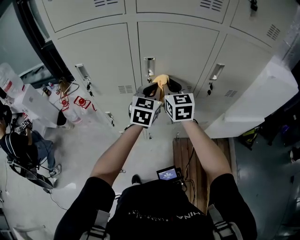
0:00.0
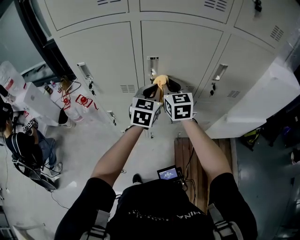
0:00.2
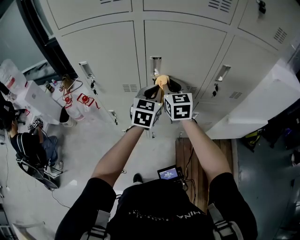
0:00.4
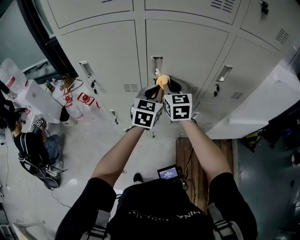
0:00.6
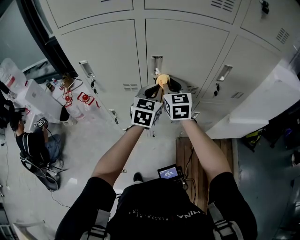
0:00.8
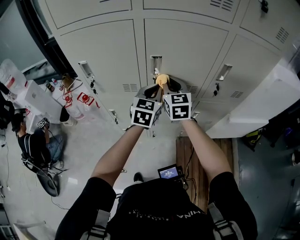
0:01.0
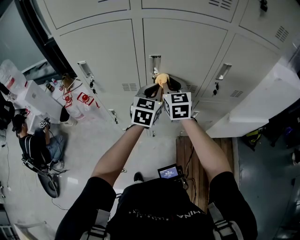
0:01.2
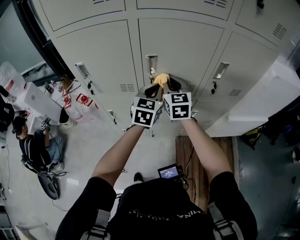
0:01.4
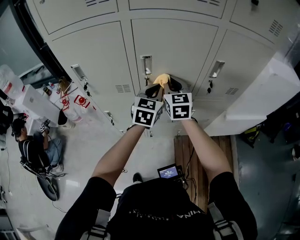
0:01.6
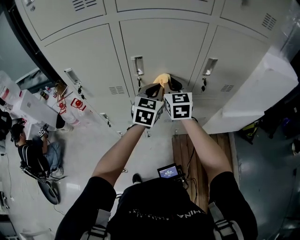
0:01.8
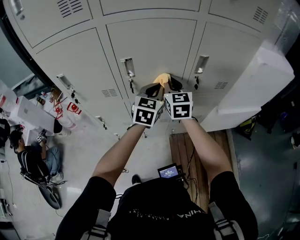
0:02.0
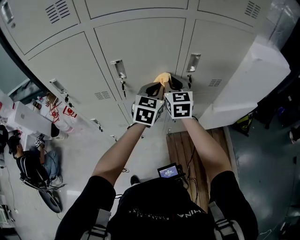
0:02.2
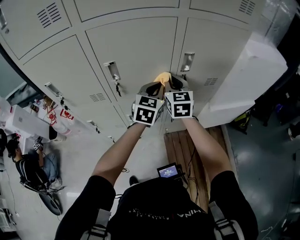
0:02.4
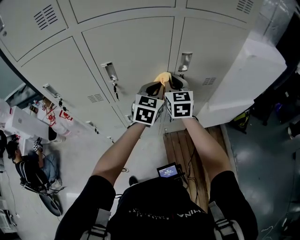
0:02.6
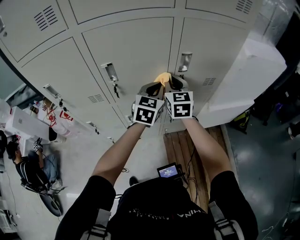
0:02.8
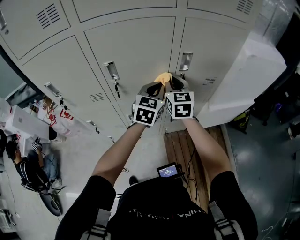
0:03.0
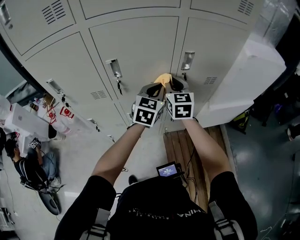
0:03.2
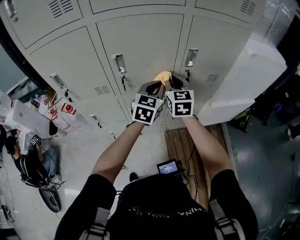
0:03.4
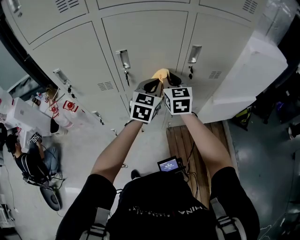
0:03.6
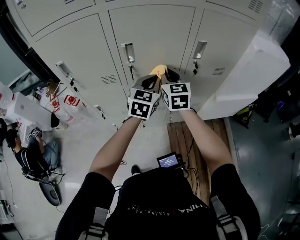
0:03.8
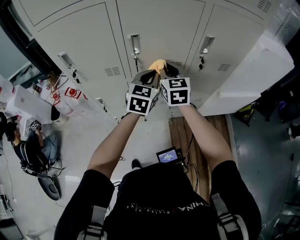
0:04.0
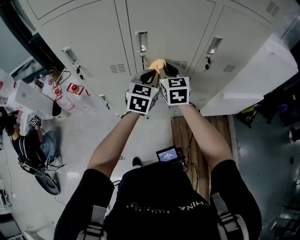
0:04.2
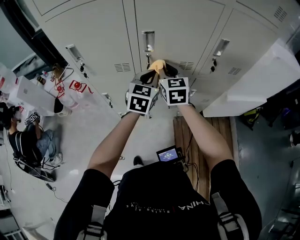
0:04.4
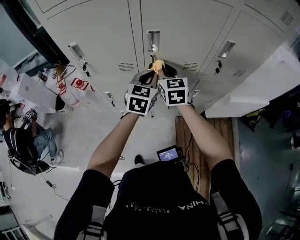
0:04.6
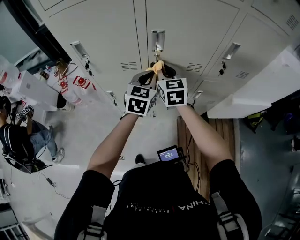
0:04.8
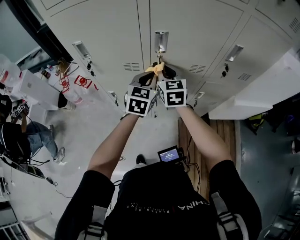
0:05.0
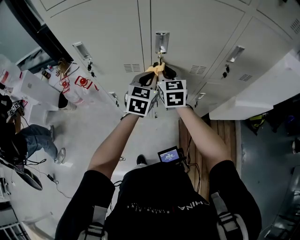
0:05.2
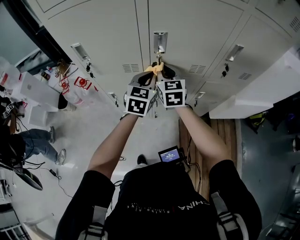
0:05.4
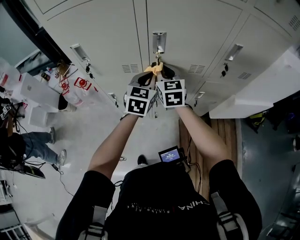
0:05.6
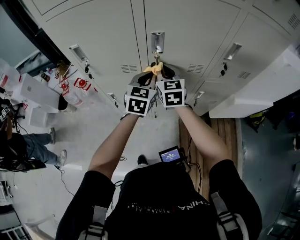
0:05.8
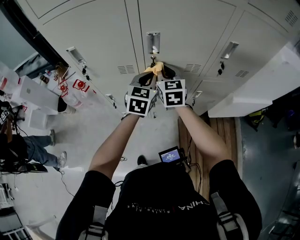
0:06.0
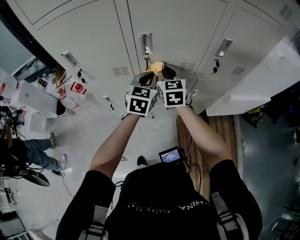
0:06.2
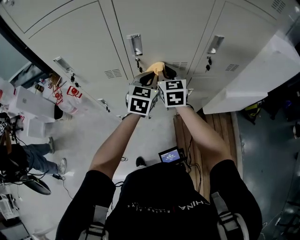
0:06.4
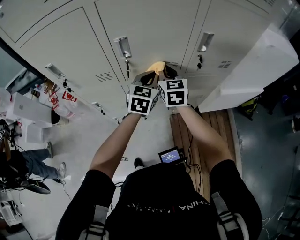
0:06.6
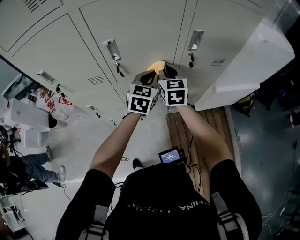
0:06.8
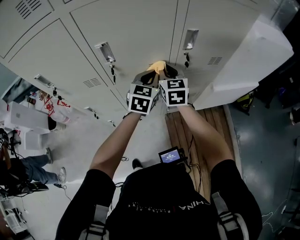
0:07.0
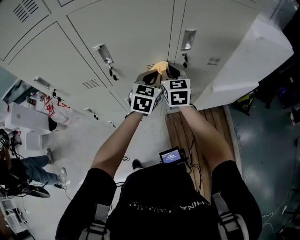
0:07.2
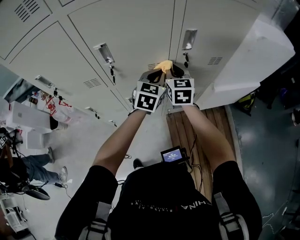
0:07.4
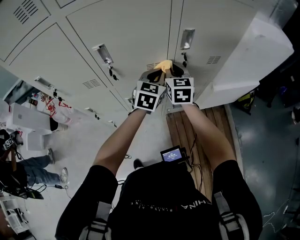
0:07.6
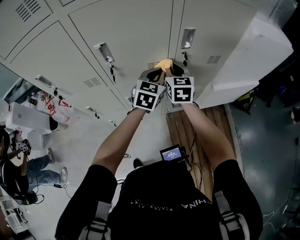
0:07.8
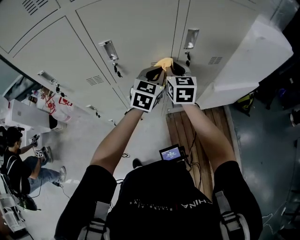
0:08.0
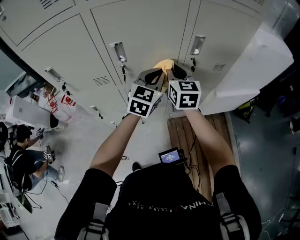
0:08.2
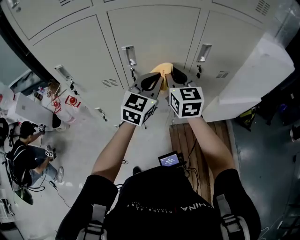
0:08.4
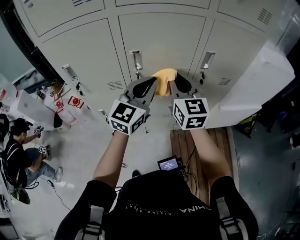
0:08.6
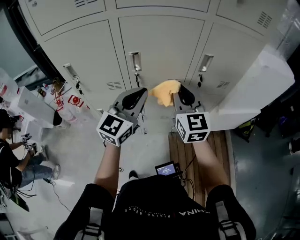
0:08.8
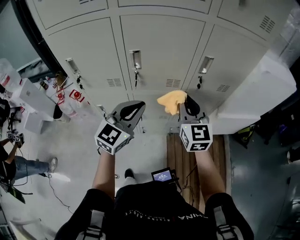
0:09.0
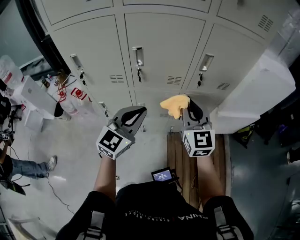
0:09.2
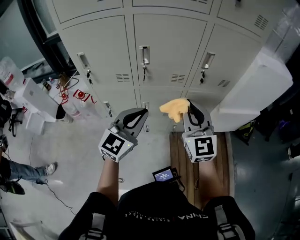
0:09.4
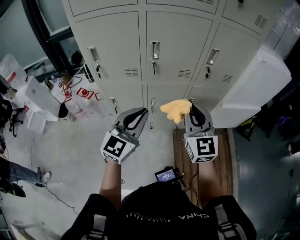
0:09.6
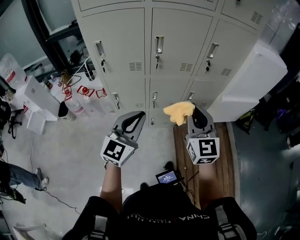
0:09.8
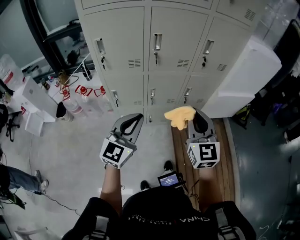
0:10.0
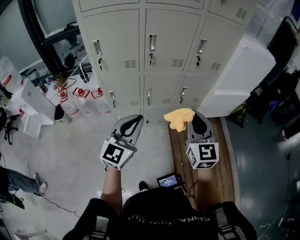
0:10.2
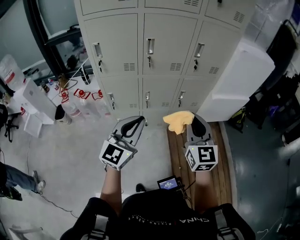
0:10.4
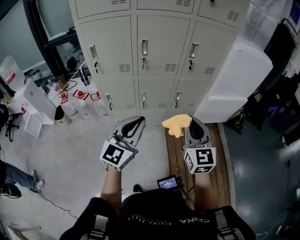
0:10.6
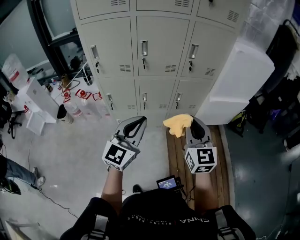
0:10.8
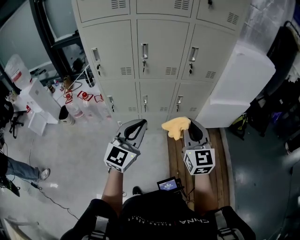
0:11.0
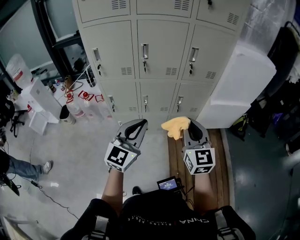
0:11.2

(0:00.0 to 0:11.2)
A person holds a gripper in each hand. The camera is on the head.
0:00.0 - 0:01.6: There are only small adjustments of the grippers.
0:01.6 - 0:03.2: The two grippers go about 15 cm to the right.
0:03.2 - 0:04.8: The two grippers go about 20 cm to the left.
0:04.8 - 0:06.4: The two grippers go roughly 10 cm to the right.
0:06.4 - 0:08.0: Both grippers travel together to the right, roughly 10 cm.
0:08.0 - 0:09.6: The left gripper moves backward and to the left, approximately 35 cm. The right gripper travels backward by approximately 30 cm, and changes its angle by roughly 20 degrees.
0:09.6 - 0:11.2: Both grippers travel together backward and to the right, roughly 15 cm.

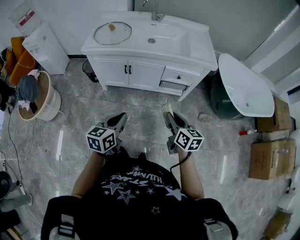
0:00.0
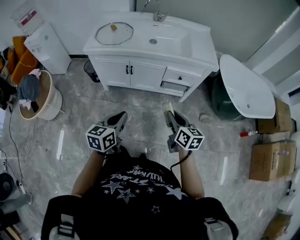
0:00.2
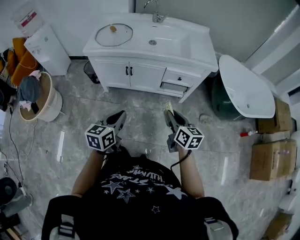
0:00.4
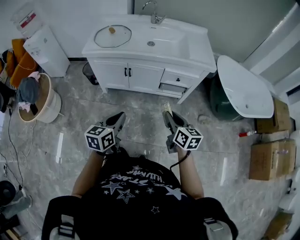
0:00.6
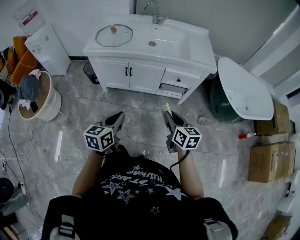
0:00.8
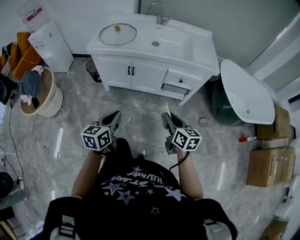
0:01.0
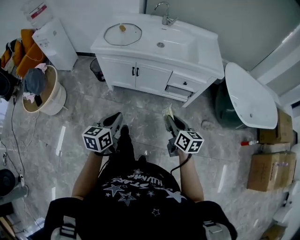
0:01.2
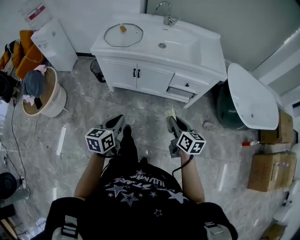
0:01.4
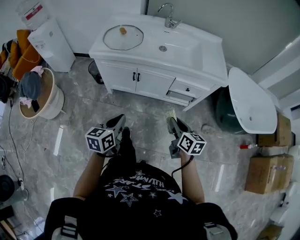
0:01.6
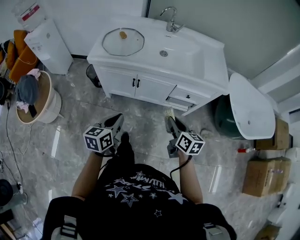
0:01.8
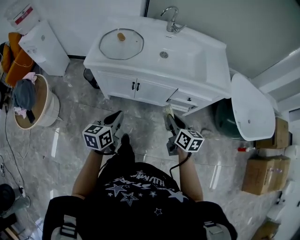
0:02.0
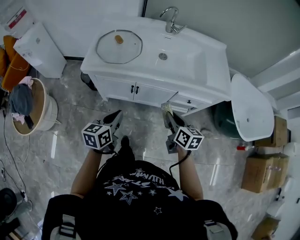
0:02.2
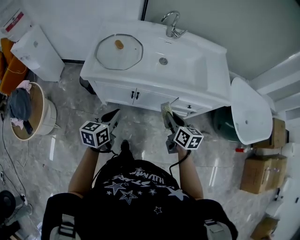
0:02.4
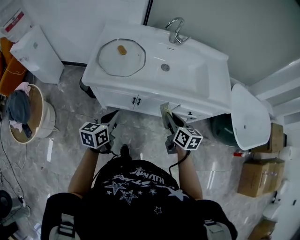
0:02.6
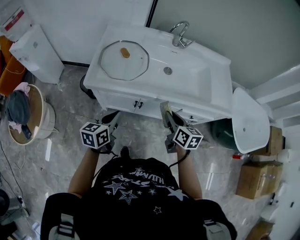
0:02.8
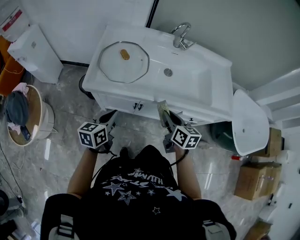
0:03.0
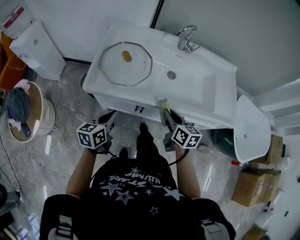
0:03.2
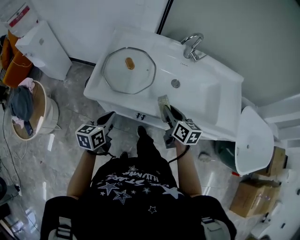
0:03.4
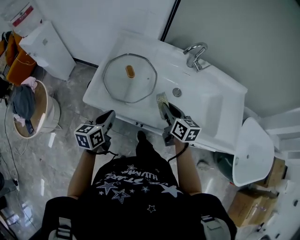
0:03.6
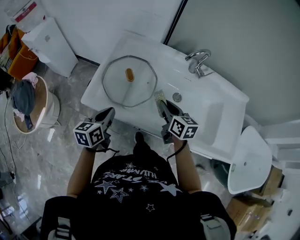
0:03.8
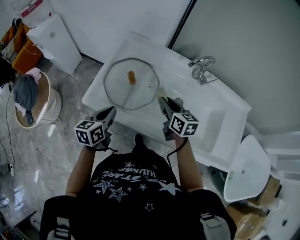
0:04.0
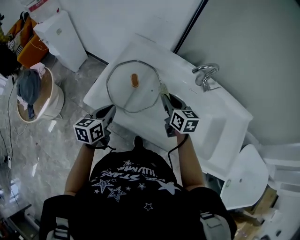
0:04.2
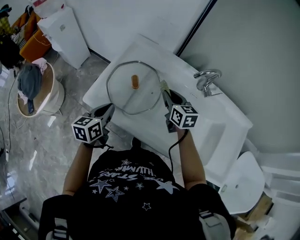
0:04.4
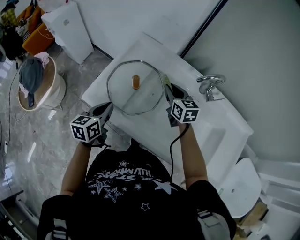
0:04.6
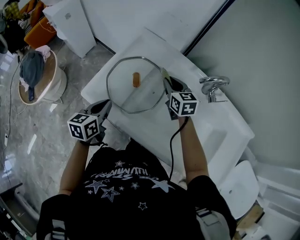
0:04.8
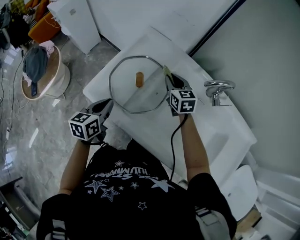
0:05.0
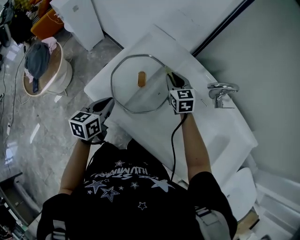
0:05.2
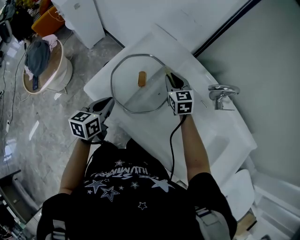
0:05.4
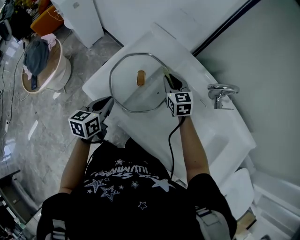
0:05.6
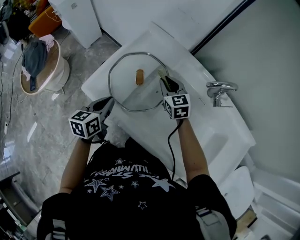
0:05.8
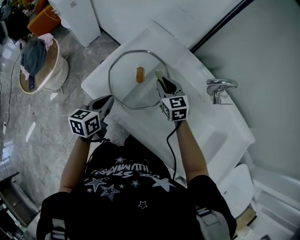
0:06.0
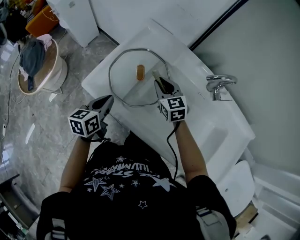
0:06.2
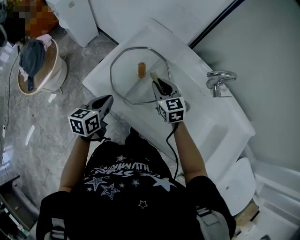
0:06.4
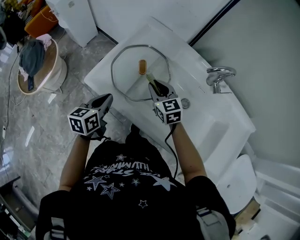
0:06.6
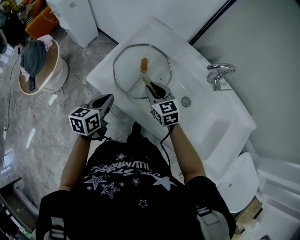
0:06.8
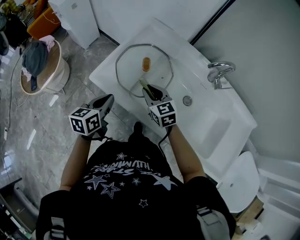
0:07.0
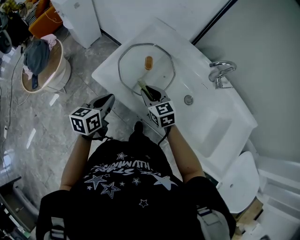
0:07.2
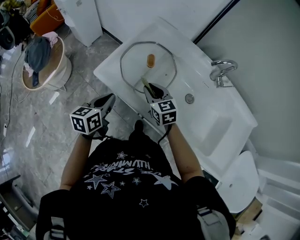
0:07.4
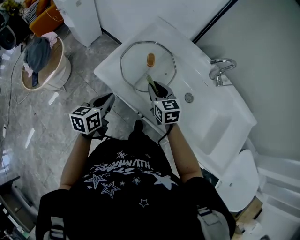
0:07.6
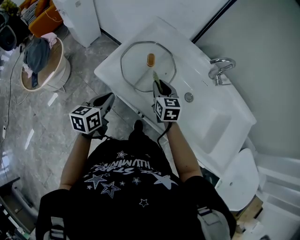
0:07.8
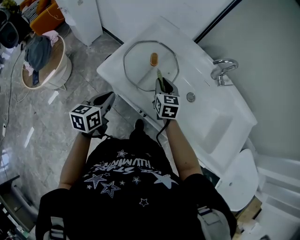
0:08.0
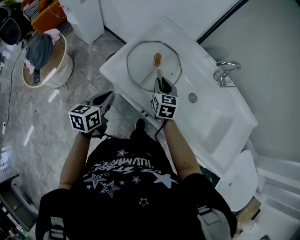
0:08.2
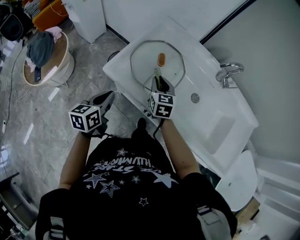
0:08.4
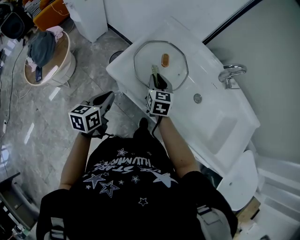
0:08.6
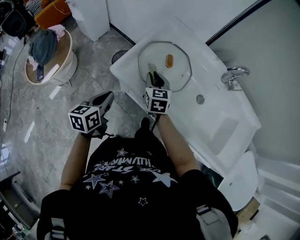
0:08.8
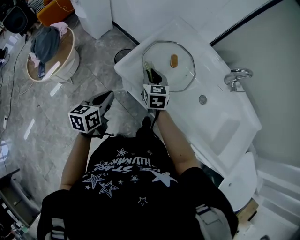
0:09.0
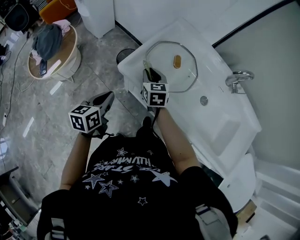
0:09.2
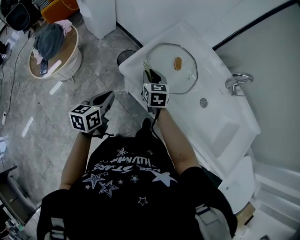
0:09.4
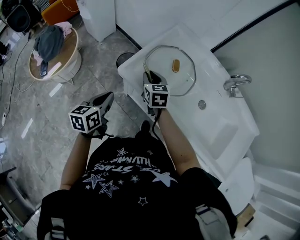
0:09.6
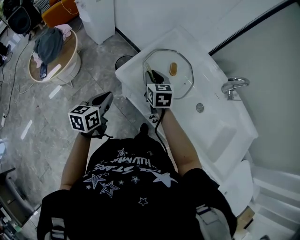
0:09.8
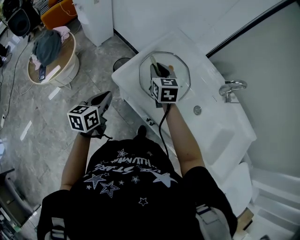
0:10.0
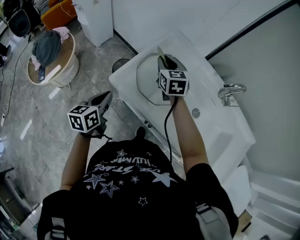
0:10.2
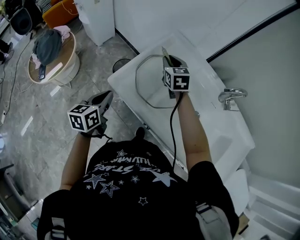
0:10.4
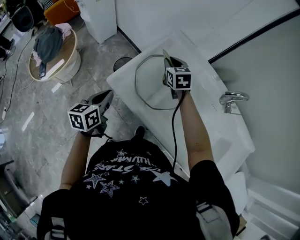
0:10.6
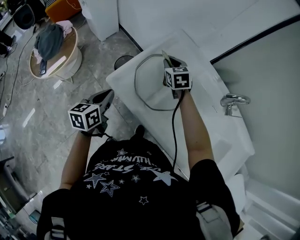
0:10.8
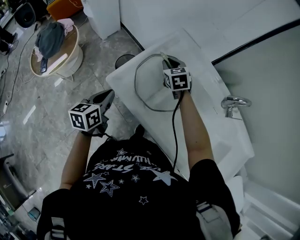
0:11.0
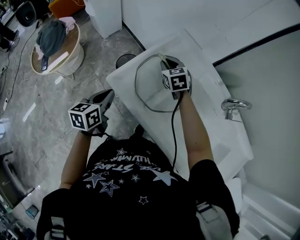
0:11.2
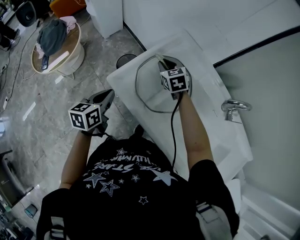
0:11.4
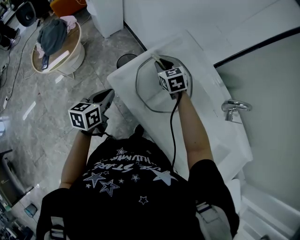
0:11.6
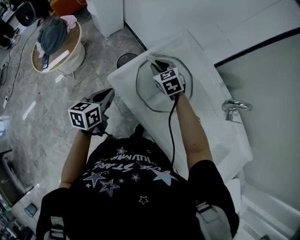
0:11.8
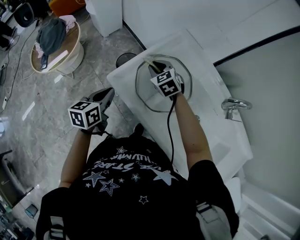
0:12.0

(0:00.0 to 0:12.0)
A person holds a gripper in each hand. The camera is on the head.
0:00.0 - 0:01.6: The right gripper shifts some 5 cm forward. The left gripper travels forward and to the left by some 10 cm.
0:01.6 - 0:03.0: The two grippers go some 35 cm forward and to the left.
0:03.0 - 0:04.4: The left gripper is displaced forward by approximately 20 cm, and rotates approximately 30 degrees; the right gripper shifts roughly 35 cm forward, and swivels some 30 degrees.
0:04.4 - 0:06.0: The right gripper moves to the left and forward, roughly 10 cm, and swivels roughly 20 degrees.
0:06.0 - 0:07.6: The right gripper heads backward and to the left, covering approximately 15 cm. The left gripper travels backward by some 10 cm.
0:07.6 - 0:09.0: Both grippers move to the left, roughly 10 cm.
0:09.0 - 0:10.4: The right gripper moves forward, upward and to the right, about 20 cm. The left gripper travels forward by roughly 5 cm.
0:10.4 - 0:12.0: The right gripper goes about 10 cm downward and to the left, and rotates about 30 degrees.

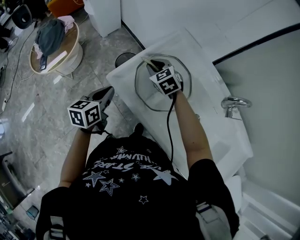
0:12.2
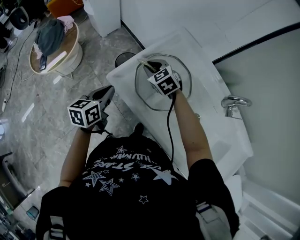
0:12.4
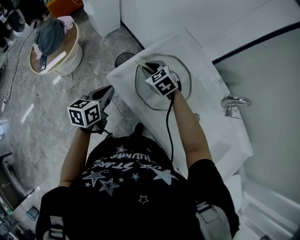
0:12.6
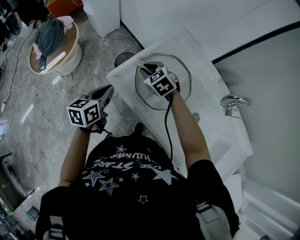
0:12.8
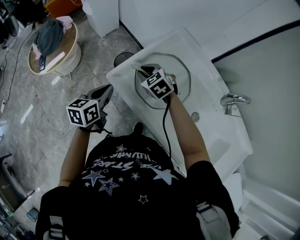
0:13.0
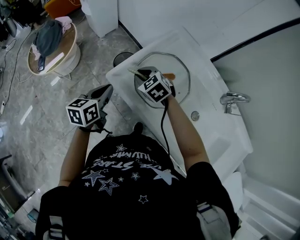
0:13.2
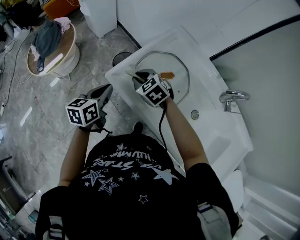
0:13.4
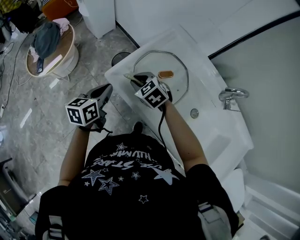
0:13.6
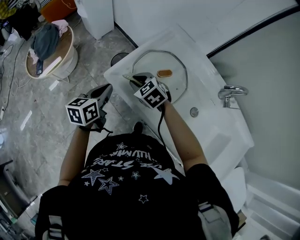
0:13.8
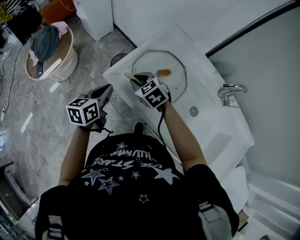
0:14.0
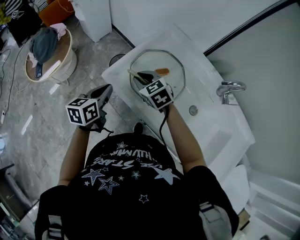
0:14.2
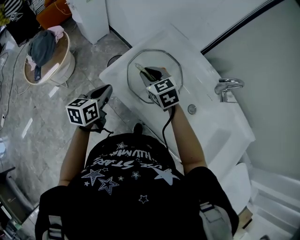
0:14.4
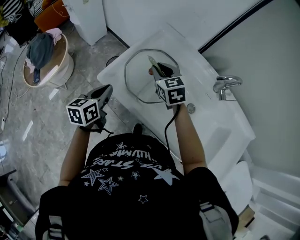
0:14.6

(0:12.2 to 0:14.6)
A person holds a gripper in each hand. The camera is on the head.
0:12.2 - 0:13.4: The right gripper heads backward and to the left, covering some 10 cm.
0:13.4 - 0:14.6: The right gripper is displaced to the right and upward by roughly 15 cm, and changes its angle by roughly 30 degrees.
